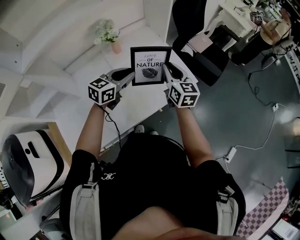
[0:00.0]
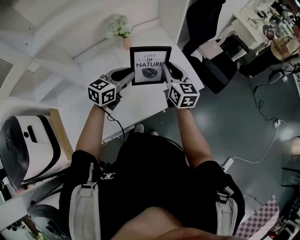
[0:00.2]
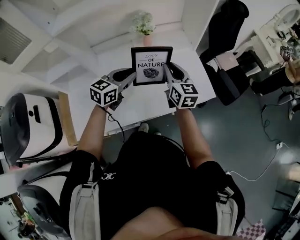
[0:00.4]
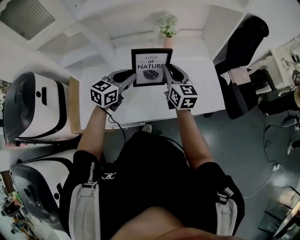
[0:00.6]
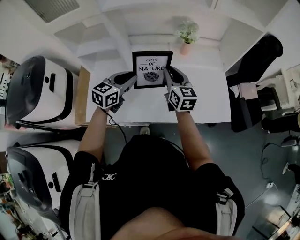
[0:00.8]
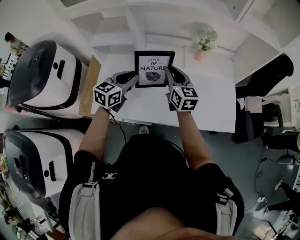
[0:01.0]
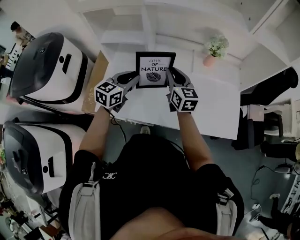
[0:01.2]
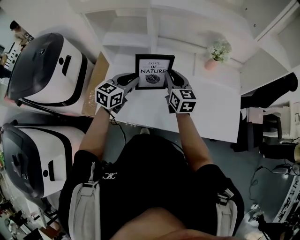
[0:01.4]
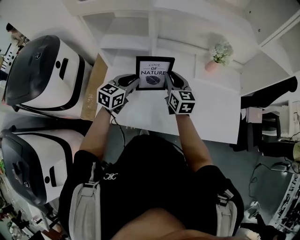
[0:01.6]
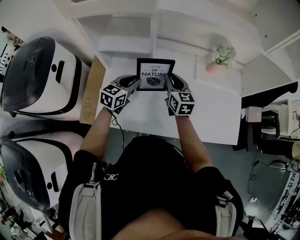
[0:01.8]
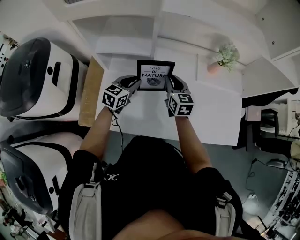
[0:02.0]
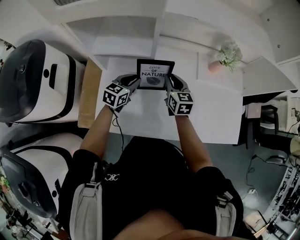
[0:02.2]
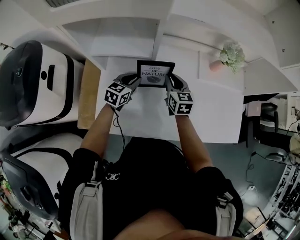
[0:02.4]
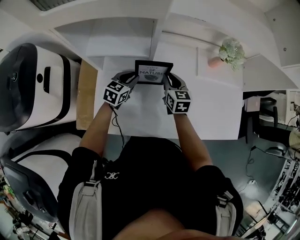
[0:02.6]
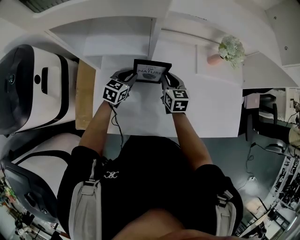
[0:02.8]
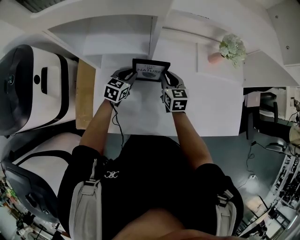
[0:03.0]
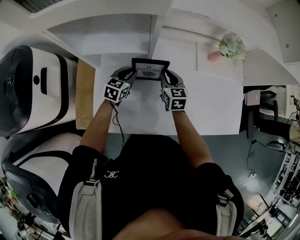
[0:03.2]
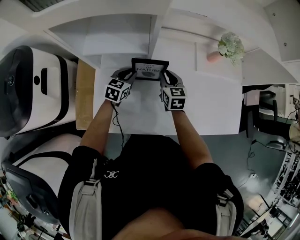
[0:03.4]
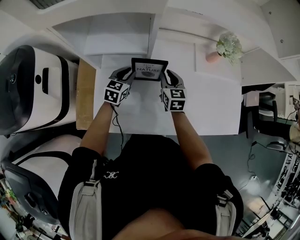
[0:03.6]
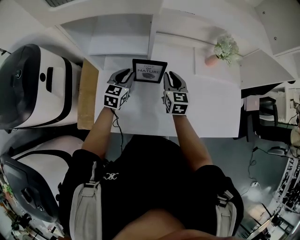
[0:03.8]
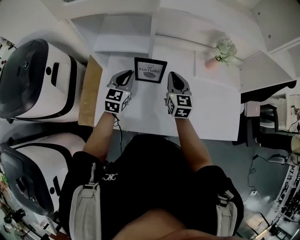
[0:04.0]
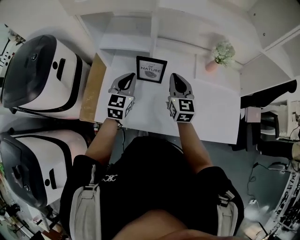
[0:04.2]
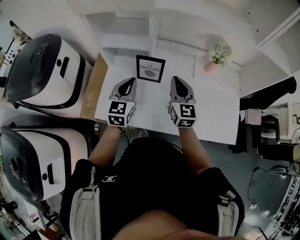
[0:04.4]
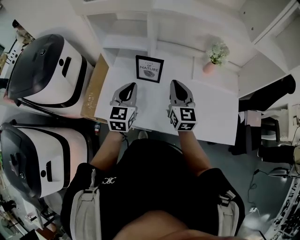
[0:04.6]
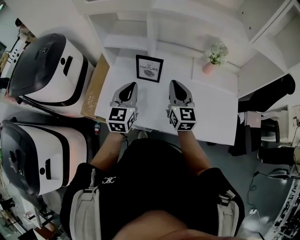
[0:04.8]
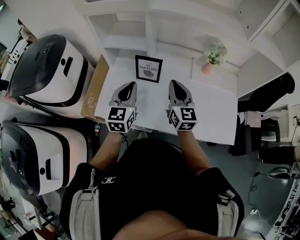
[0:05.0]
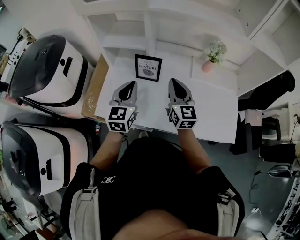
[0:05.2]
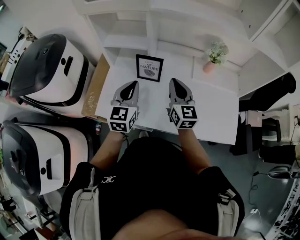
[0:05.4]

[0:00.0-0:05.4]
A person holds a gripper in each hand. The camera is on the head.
0:00.0 to 0:01.4: The right gripper changes place by some 40 cm, and swivels about 40 degrees. The left gripper moves about 40 cm, and swivels roughly 50 degrees.
0:01.4 to 0:02.8: The grippers both shift downward and forward by some 20 cm. The right gripper rotates approximately 20 degrees.
0:02.8 to 0:04.0: The left gripper travels upward and backward by roughly 15 cm, and turns by roughly 20 degrees. Meanwhile the right gripper moves upward, about 10 cm.
0:04.0 to 0:05.4: Both grippers move backward and upward, approximately 15 cm.

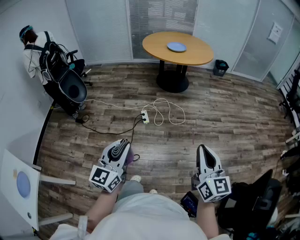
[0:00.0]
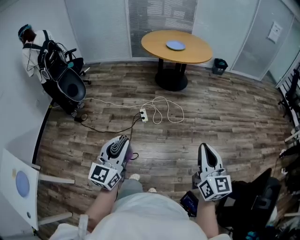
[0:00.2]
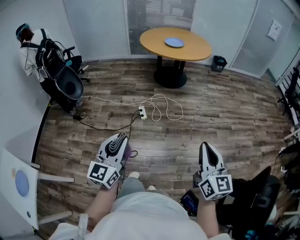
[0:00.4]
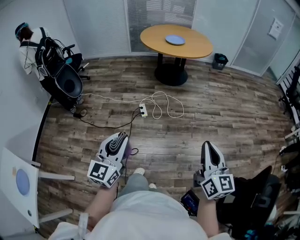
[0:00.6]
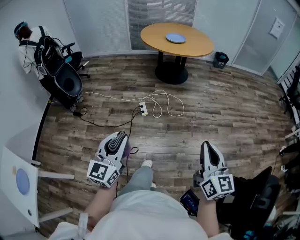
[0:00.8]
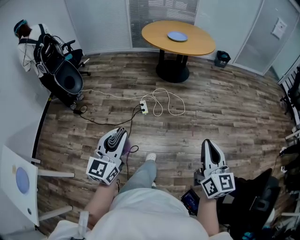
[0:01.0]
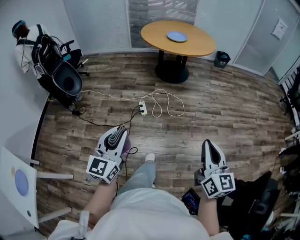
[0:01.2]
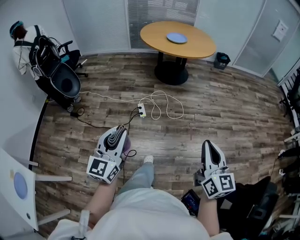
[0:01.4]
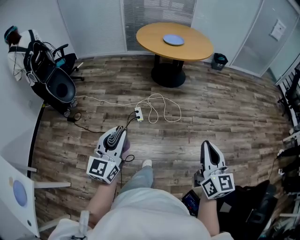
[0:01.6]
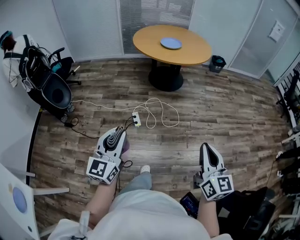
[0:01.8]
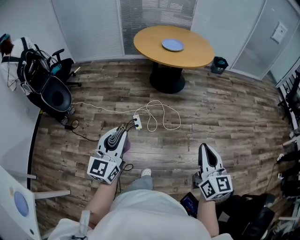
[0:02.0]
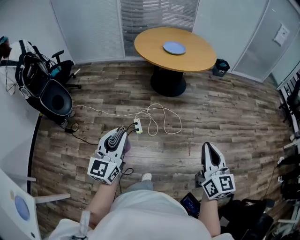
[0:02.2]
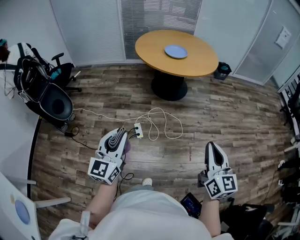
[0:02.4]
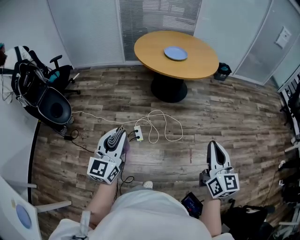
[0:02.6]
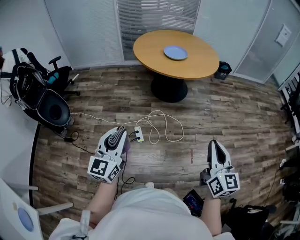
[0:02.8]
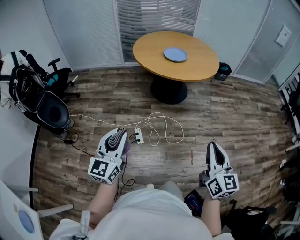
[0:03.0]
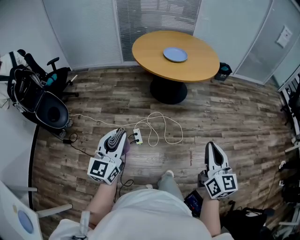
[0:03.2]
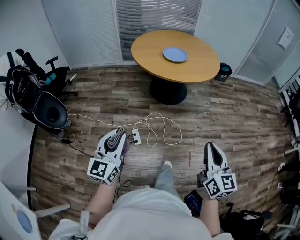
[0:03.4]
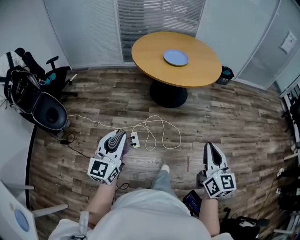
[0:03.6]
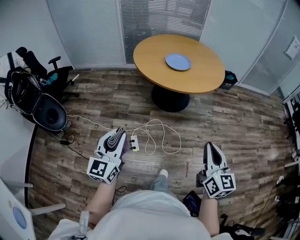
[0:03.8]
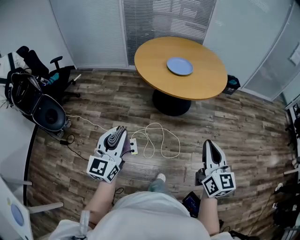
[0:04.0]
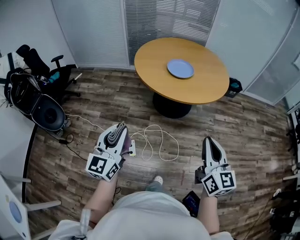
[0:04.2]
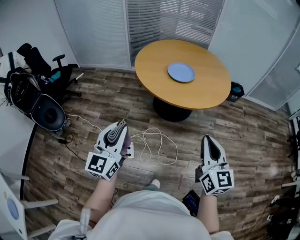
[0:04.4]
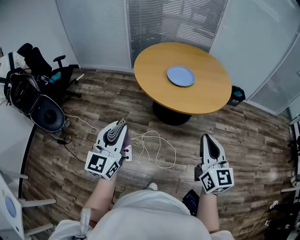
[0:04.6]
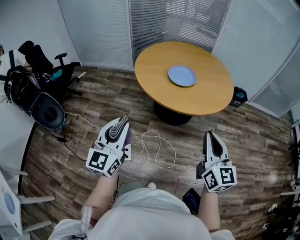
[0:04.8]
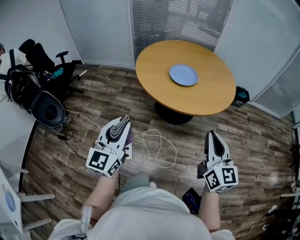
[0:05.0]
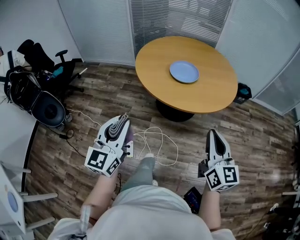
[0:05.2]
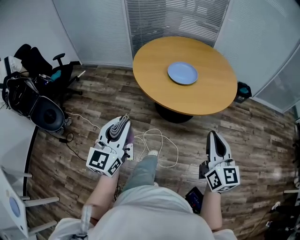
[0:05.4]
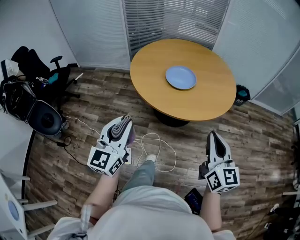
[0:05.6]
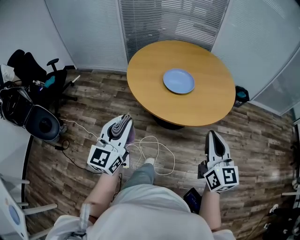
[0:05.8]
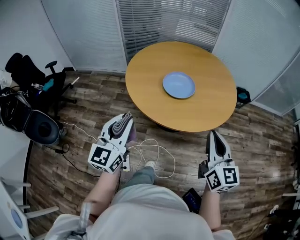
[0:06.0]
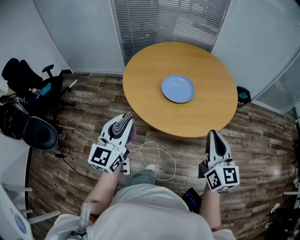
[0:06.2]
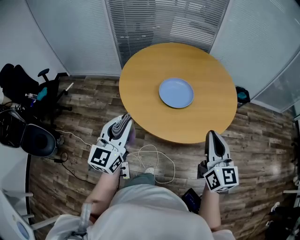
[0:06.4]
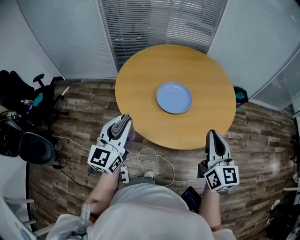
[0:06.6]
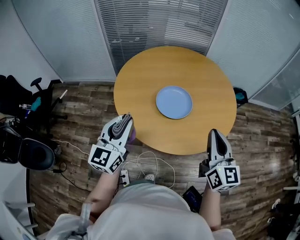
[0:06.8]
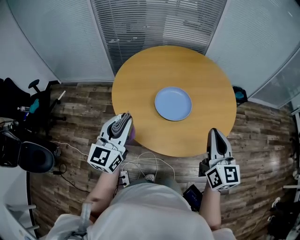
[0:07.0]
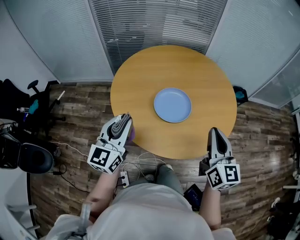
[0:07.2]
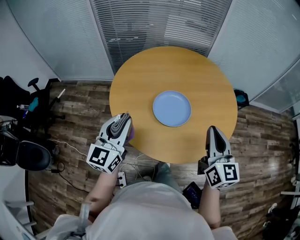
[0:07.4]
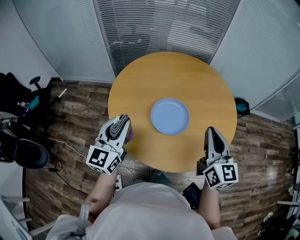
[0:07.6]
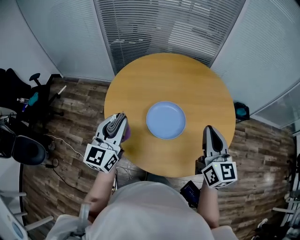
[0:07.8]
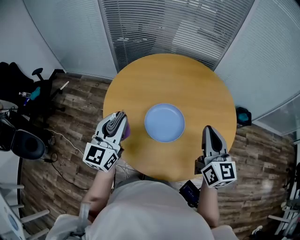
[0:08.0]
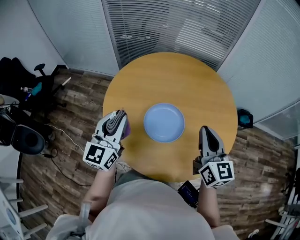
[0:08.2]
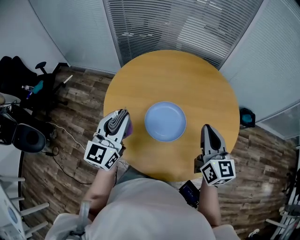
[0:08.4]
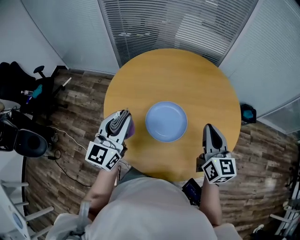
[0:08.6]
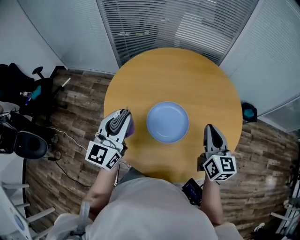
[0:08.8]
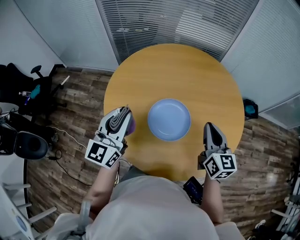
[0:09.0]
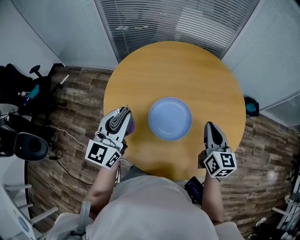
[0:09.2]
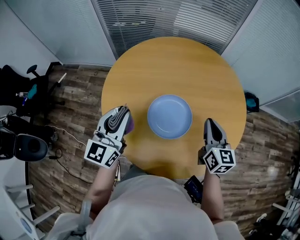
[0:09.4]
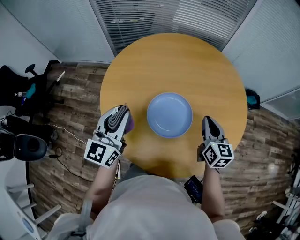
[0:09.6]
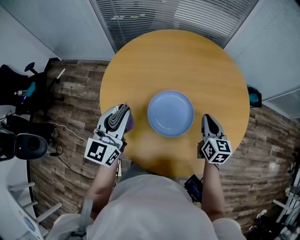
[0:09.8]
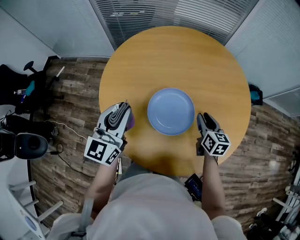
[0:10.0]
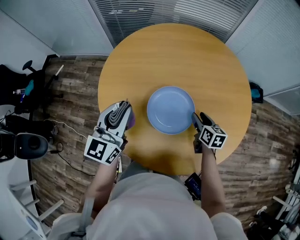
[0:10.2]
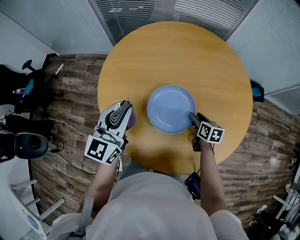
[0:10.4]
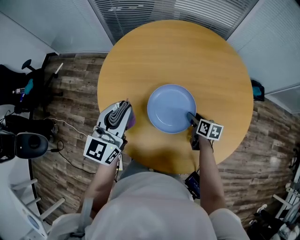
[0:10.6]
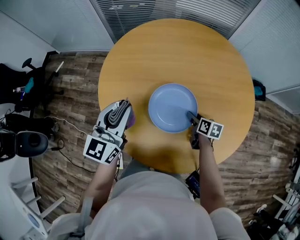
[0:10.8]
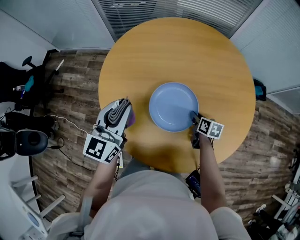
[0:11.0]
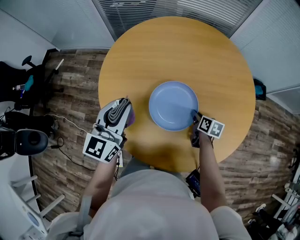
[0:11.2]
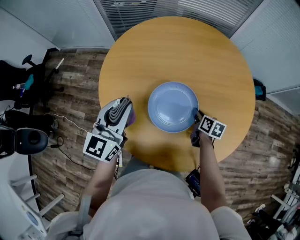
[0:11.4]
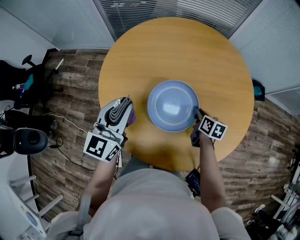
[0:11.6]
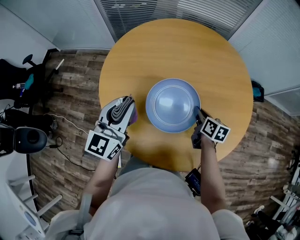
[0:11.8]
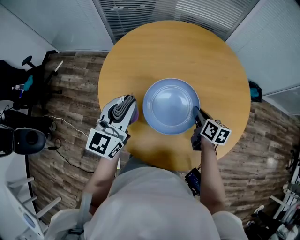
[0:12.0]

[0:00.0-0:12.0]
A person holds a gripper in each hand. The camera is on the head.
0:00.0 to 0:01.6: The grippers both shift forward by approximately 15 cm.
0:01.6 to 0:03.0: Both grippers travel together forward, roughly 25 cm.
0:03.0 to 0:04.4: The grippers both shift forward by approximately 25 cm.
0:04.4 to 0:06.0: Both grippers move forward, roughly 25 cm.
0:06.0 to 0:07.6: Both grippers travel together forward, about 30 cm.
0:07.6 to 0:09.0: The left gripper is displaced forward by some 10 cm. Meanwhile the right gripper travels forward and downward by approximately 15 cm.
0:09.0 to 0:10.4: The left gripper travels downward by about 5 cm; the right gripper heads downward, covering roughly 25 cm, tilts its fingers roughly 30 degrees downward, and opens up.
0:10.4 to 0:12.0: The right gripper heads upward, covering some 10 cm, and closes.

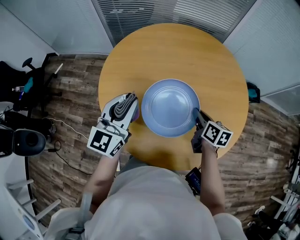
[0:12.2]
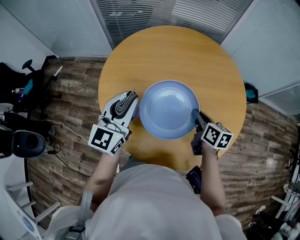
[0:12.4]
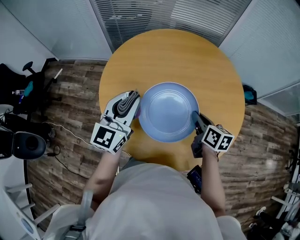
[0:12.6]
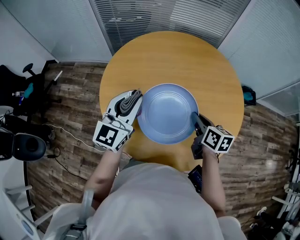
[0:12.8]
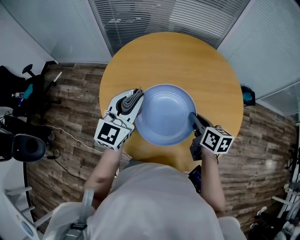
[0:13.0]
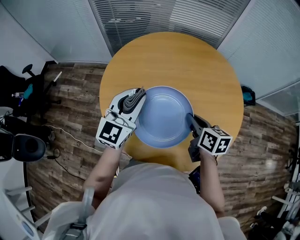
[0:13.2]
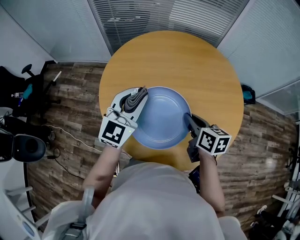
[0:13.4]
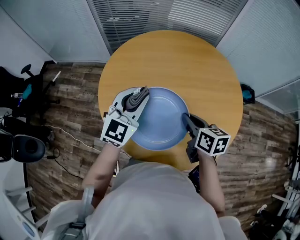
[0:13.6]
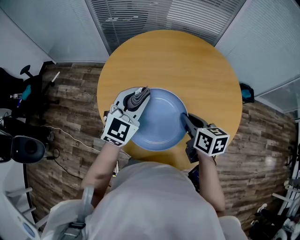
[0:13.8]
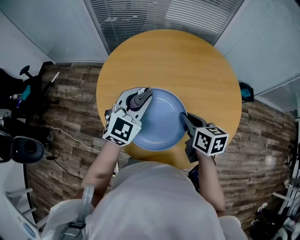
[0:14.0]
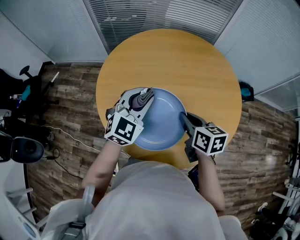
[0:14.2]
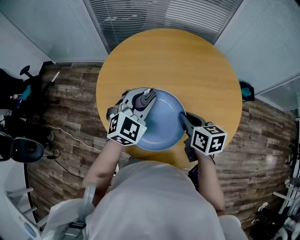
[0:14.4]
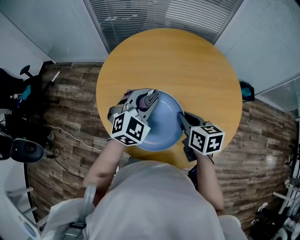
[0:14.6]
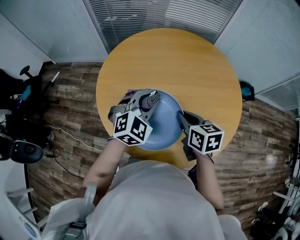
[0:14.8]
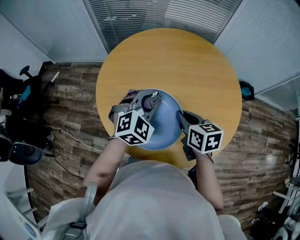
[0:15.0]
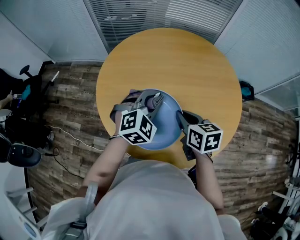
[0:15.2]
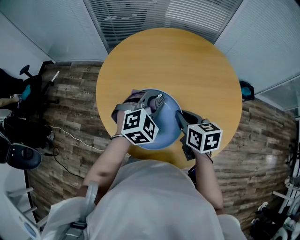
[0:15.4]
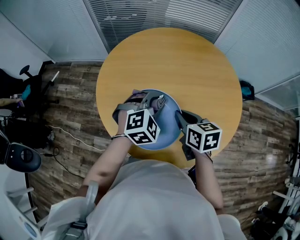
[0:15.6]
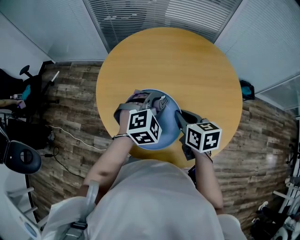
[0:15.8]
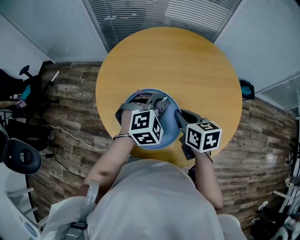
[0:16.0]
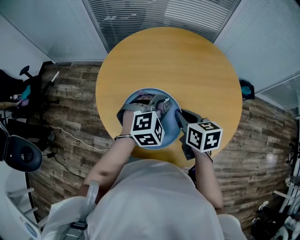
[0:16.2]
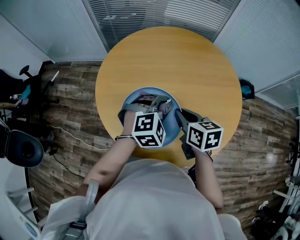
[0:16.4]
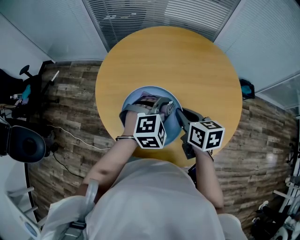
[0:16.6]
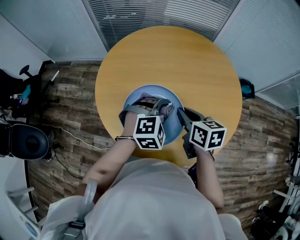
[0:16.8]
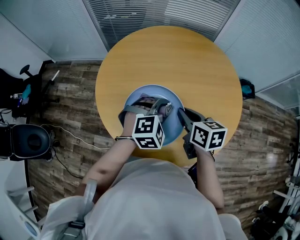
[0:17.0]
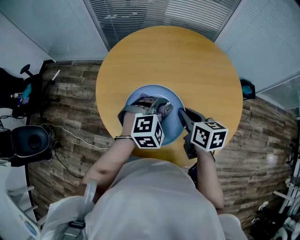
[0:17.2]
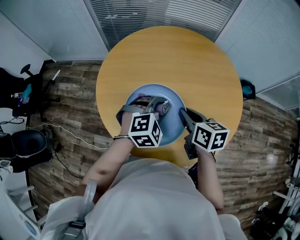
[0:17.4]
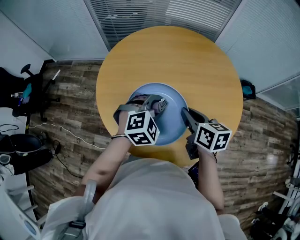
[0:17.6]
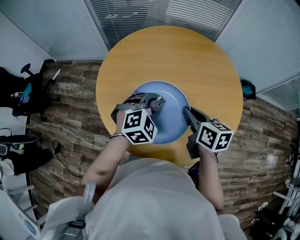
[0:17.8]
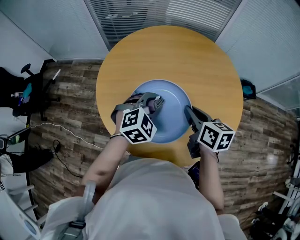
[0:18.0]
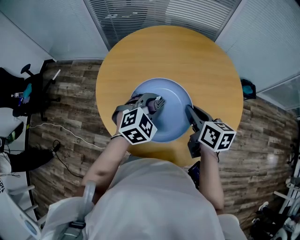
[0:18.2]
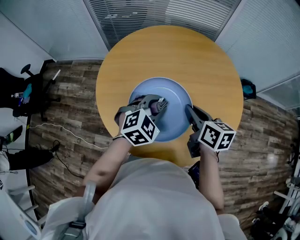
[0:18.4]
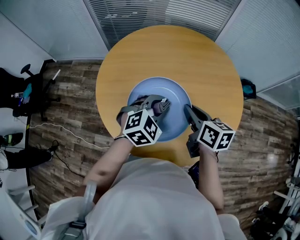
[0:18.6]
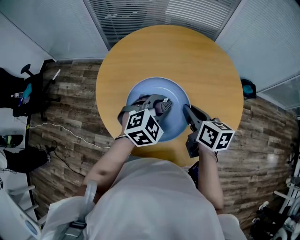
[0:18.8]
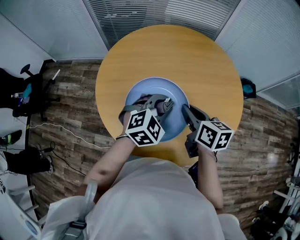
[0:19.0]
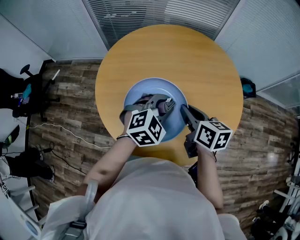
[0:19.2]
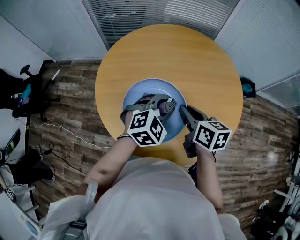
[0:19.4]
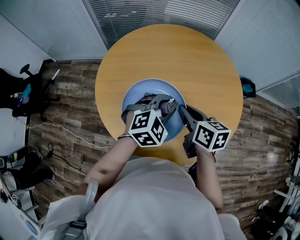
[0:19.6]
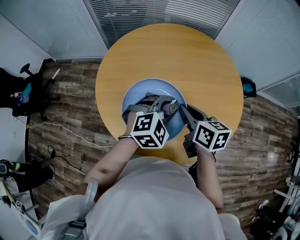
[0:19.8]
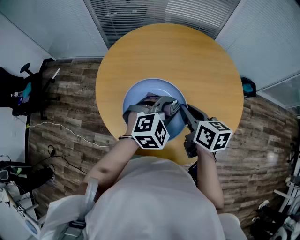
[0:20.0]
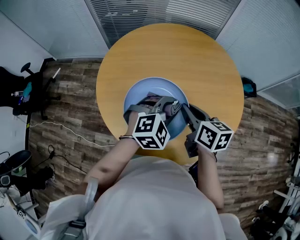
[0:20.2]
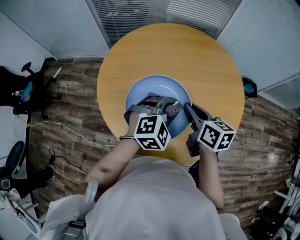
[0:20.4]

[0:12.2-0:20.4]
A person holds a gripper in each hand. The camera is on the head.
0:12.2 to 0:13.8: The left gripper travels to the right by approximately 5 cm, and rotates approximately 30 degrees. Meanwhile the right gripper is displaced upward and to the left by approximately 10 cm.
0:13.8 to 0:15.4: The left gripper moves to the right and downward, roughly 10 cm, and rotates roughly 30 degrees.
0:15.4 to 0:17.2: The left gripper ends up about 5 cm from where it was.
0:17.2 to 0:20.4: There are only small adjustments of the grippers.
